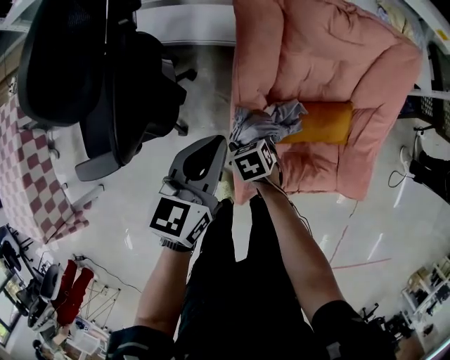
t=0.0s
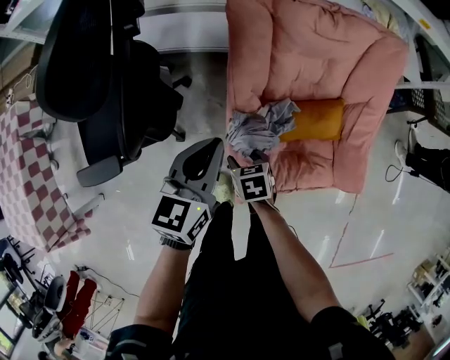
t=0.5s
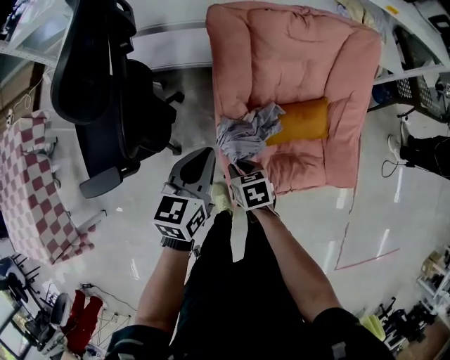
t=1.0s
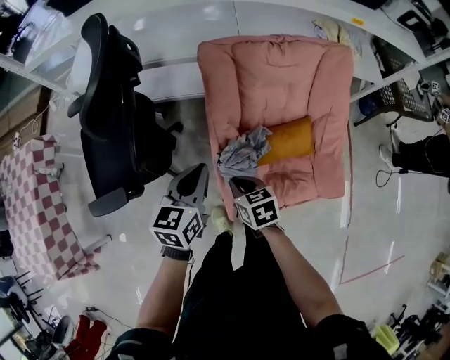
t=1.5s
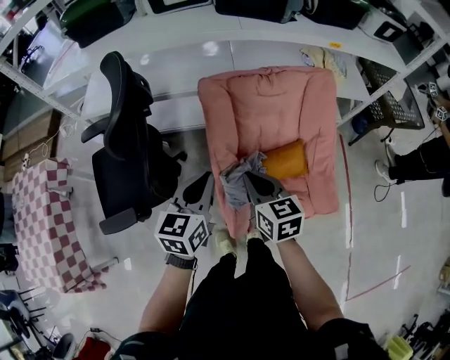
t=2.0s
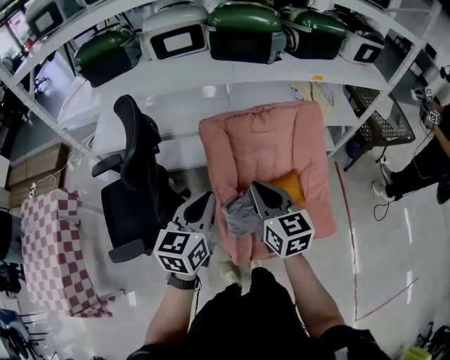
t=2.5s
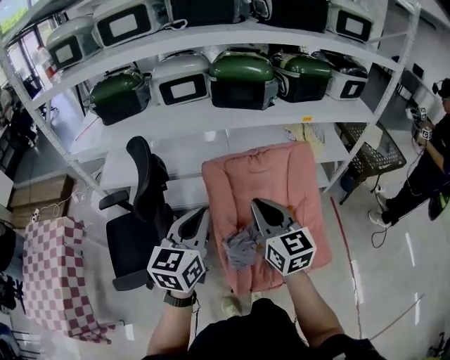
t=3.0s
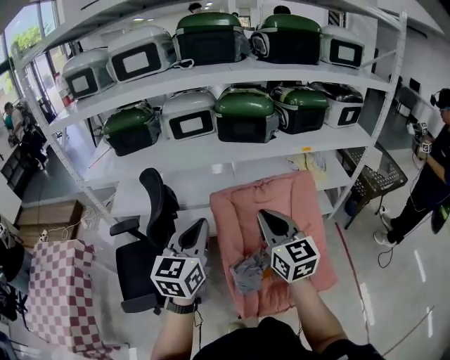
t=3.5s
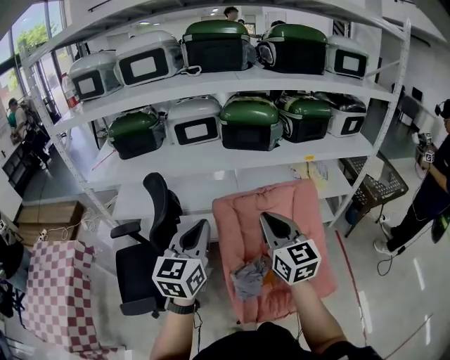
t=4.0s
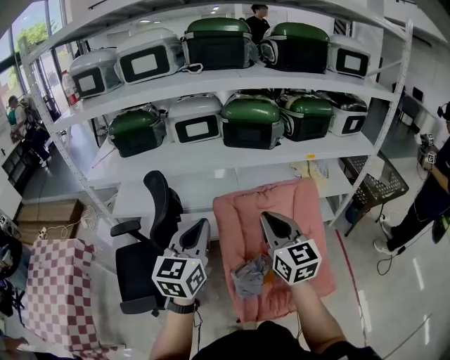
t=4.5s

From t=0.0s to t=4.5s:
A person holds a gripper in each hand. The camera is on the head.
From t=0.0s to t=2.0s: The left gripper is displaced upward by approximately 15 cm. Meanwhile the right gripper is displaced upward by about 35 cm, tips its fingers upward by roughly 40 degrees, and closes its fingers.
From t=2.0s to t=4.5s: Both grippers travel together upward, roughly 25 cm. The left gripper turns by approximately 20 degrees; the right gripper swivels some 30 degrees.

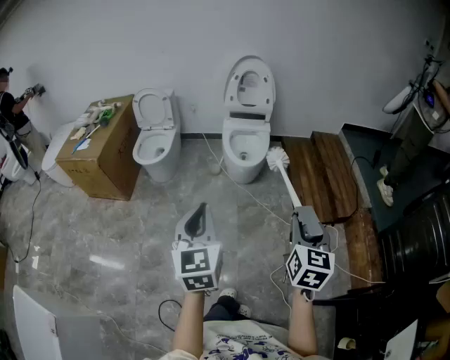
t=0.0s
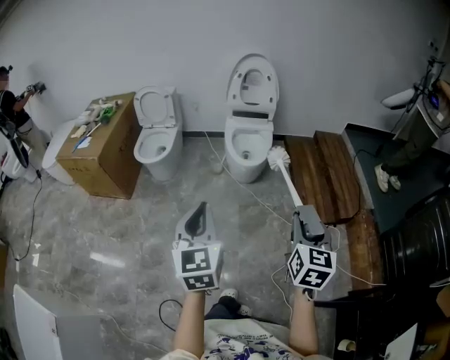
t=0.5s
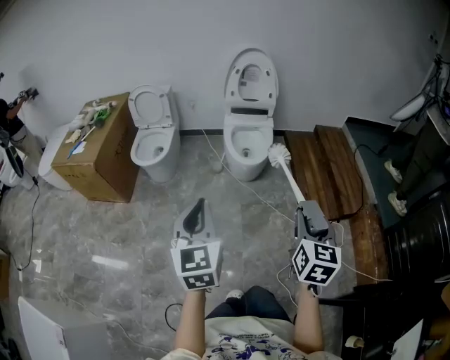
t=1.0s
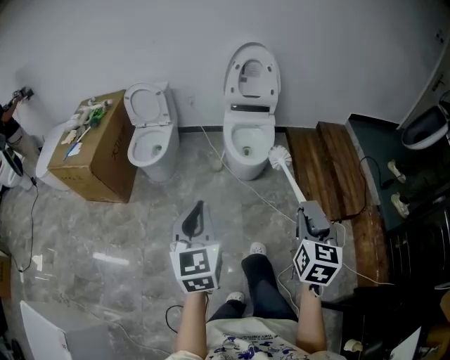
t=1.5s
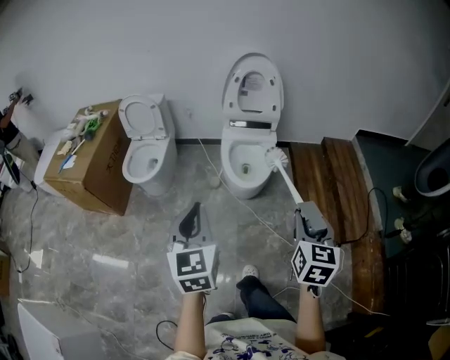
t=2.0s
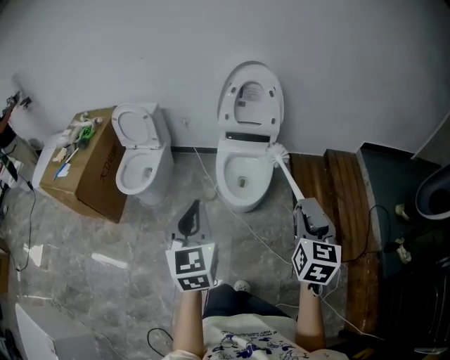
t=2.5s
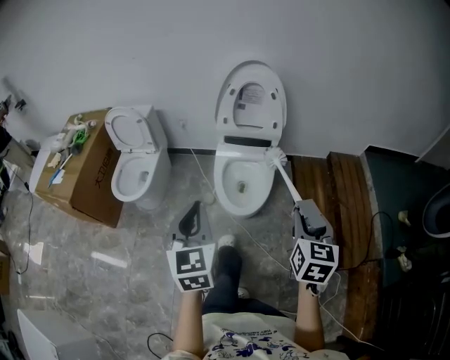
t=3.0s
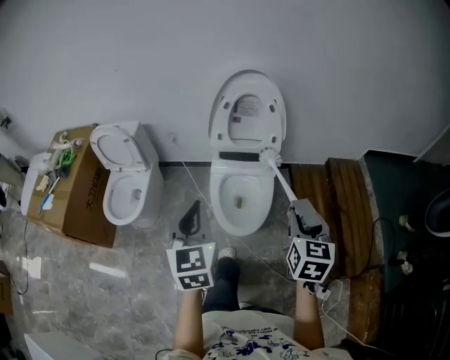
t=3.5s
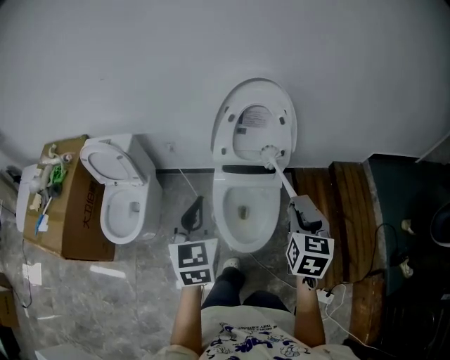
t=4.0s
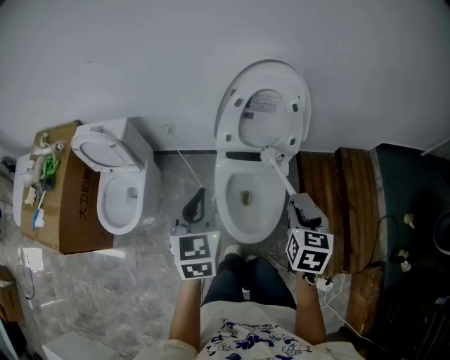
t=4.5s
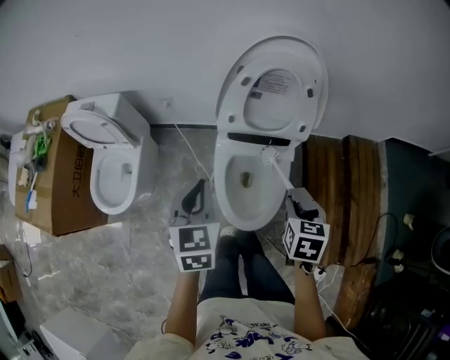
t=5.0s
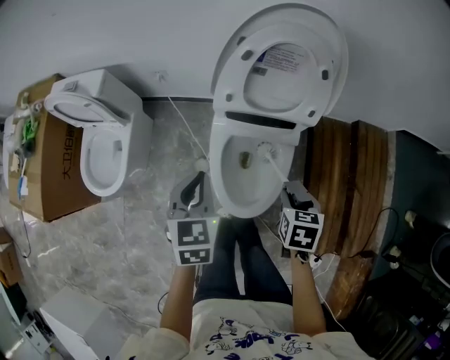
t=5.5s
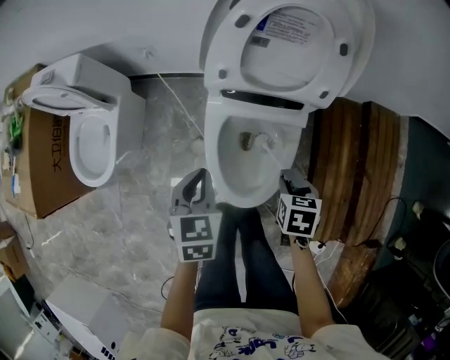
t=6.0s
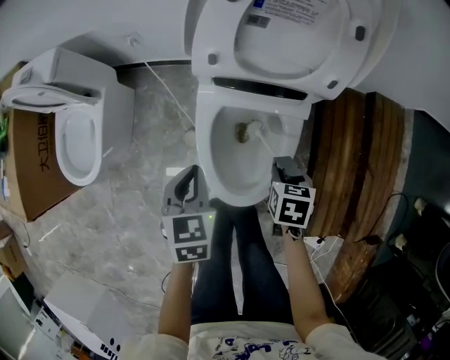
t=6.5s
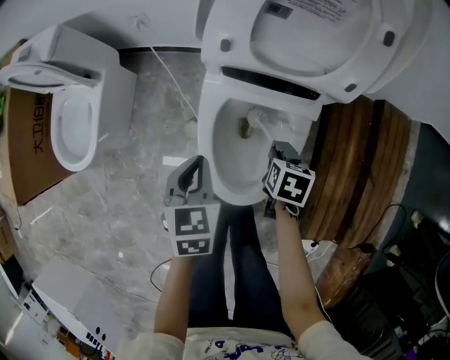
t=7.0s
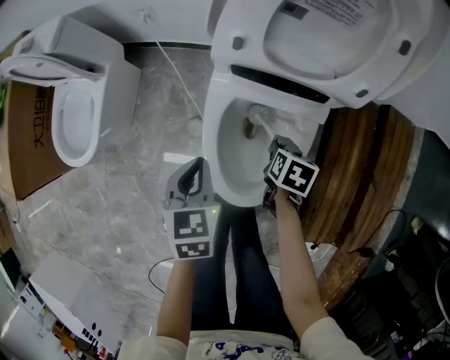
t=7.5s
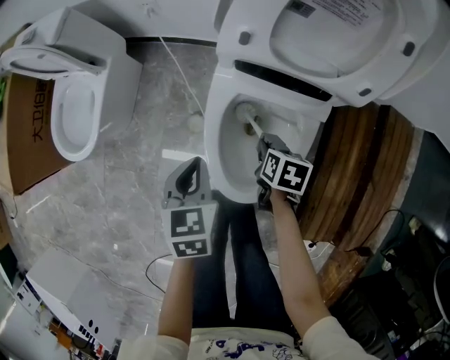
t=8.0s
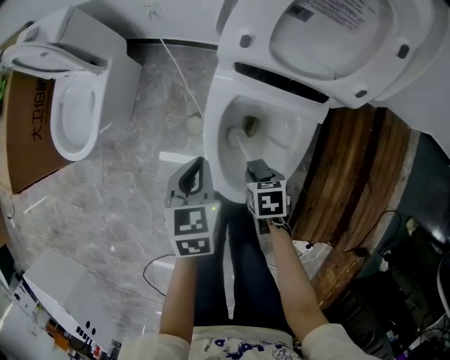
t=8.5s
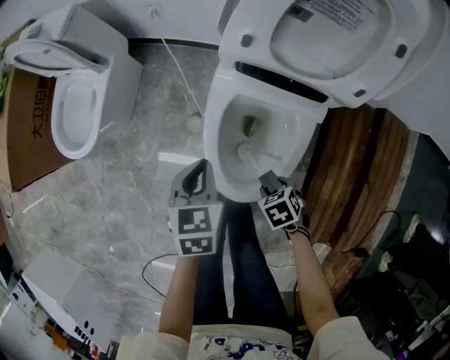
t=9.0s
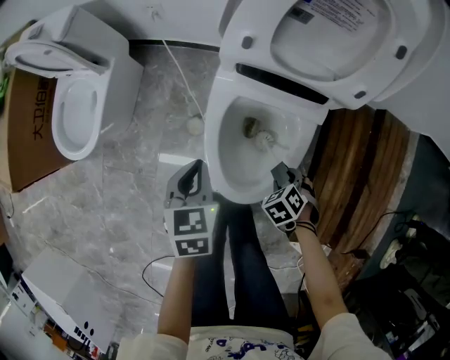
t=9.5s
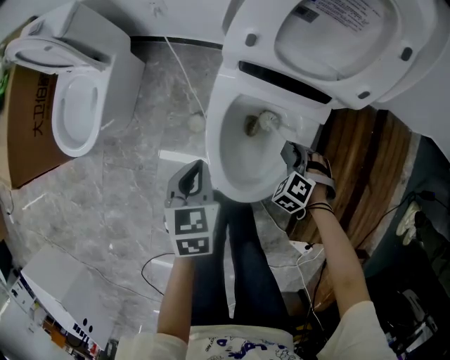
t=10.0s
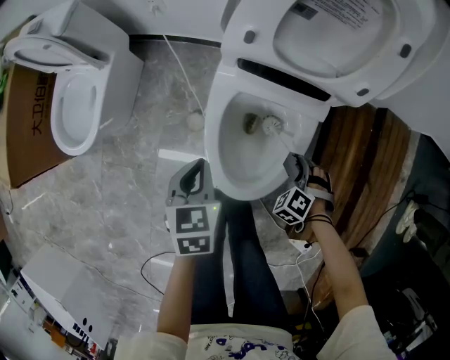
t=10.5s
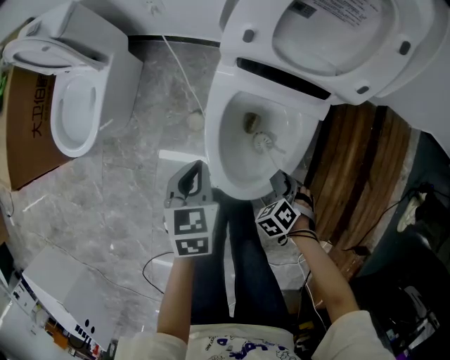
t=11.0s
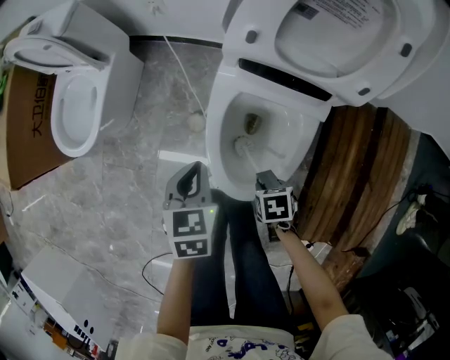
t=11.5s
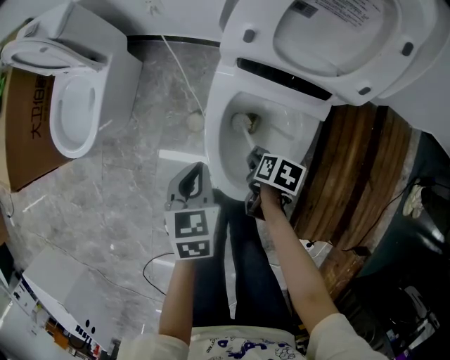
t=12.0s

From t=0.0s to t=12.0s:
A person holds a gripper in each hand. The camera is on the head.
From t=0.0s to t=2.0s: The grippers both shift forward by about 25 cm.
From t=2.0s to t=4.0s: The two grippers travel together, forward, some 50 cm.
From t=4.0s to t=6.0s: Both grippers travel together downward, approximately 30 cm. The right gripper tips its fingers downward by about 40 degrees. The left gripper turns by some 30 degrees.
From t=6.0s to t=8.0s: The right gripper travels downward, to the left and forward by some 15 cm. The left gripper shifts roughly 10 cm downward.
From t=8.0s to t=10.0s: The right gripper rolls counterclockwise, seen from behind, by some 90 degrees.
From t=10.0s to t=12.0s: The right gripper ends up approximately 10 cm from where it was, and rotates around the line of its fingers by approximately 100 degrees, clockwise from behind.

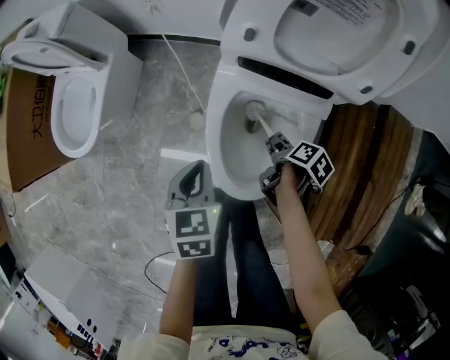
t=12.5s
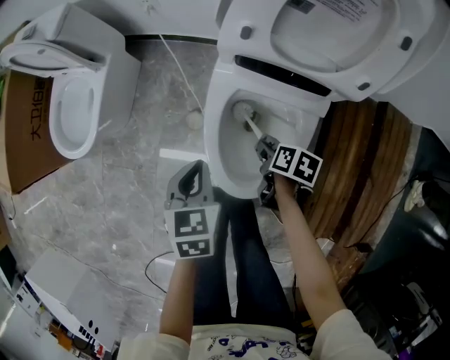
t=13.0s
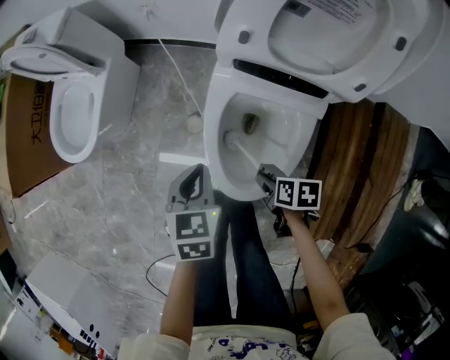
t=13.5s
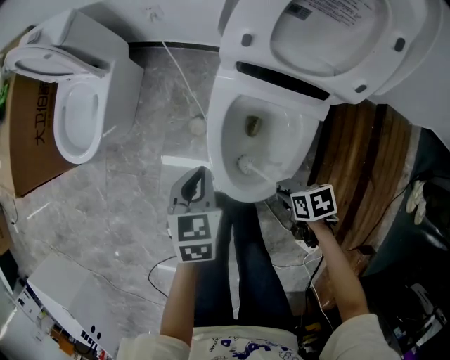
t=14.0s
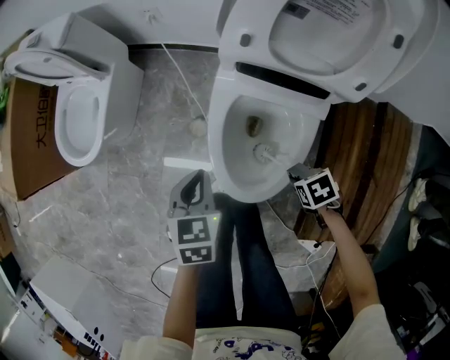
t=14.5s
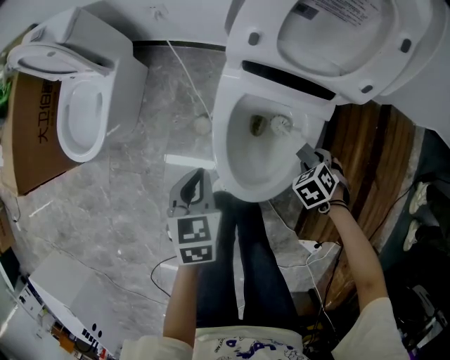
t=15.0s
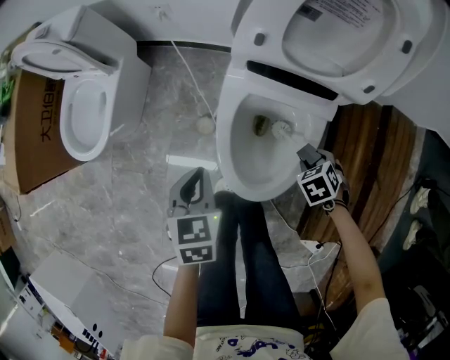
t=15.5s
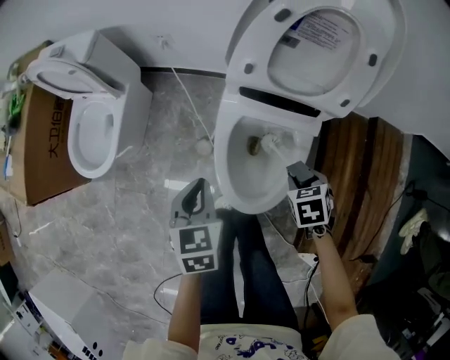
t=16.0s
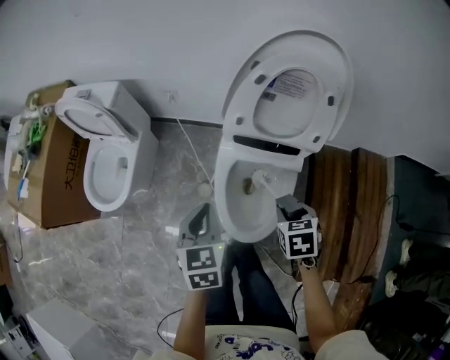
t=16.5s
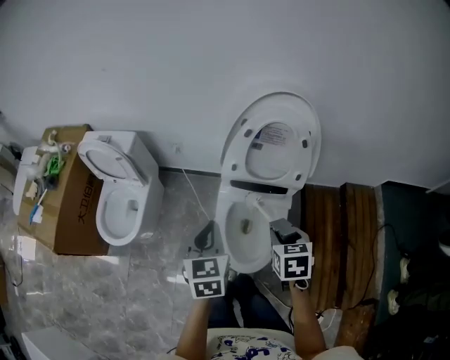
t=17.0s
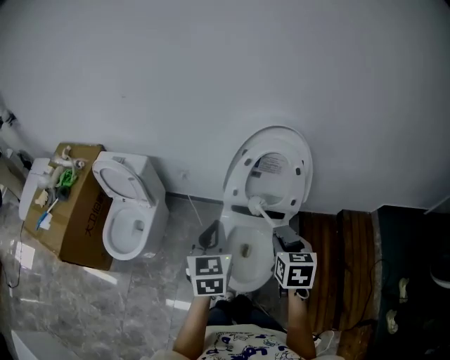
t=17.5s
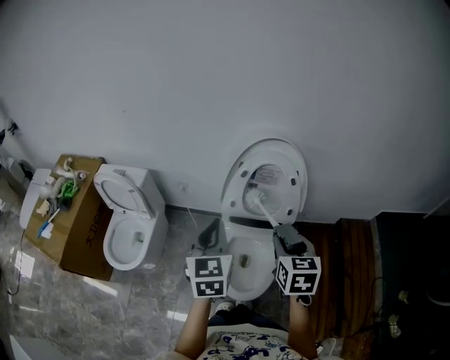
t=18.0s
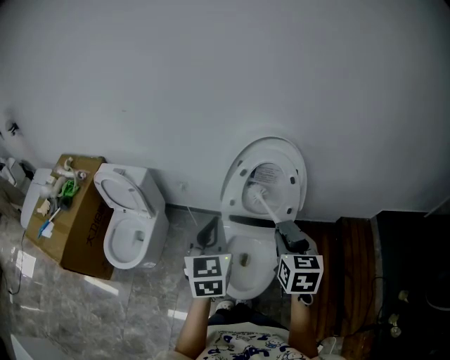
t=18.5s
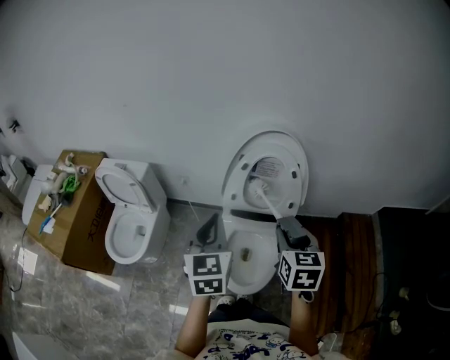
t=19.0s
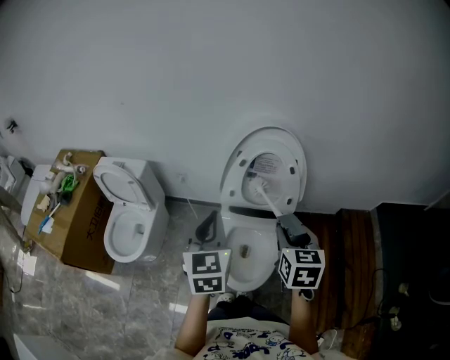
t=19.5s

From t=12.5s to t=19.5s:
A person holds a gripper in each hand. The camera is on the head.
From t=12.5s to t=14.5s: The right gripper shifts by approximately 10 cm, and twists about 70 degrees counterclockwise, seen from behind.
From t=14.5s to t=16.0s: The left gripper goes roughly 5 cm upward; the right gripper travels upward by roughly 10 cm, and rotates some 20 degrees.
From t=16.0s to t=17.5s: Both grippers move upward, approximately 30 cm. The right gripper tips its fingers upward by about 30 degrees. Meanwhile the left gripper swivels some 30 degrees.
From t=17.5s to t=19.5s: The two grippers go some 5 cm upward.

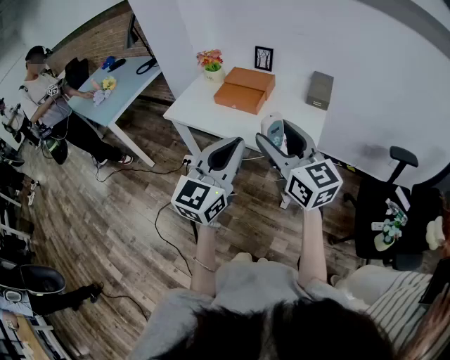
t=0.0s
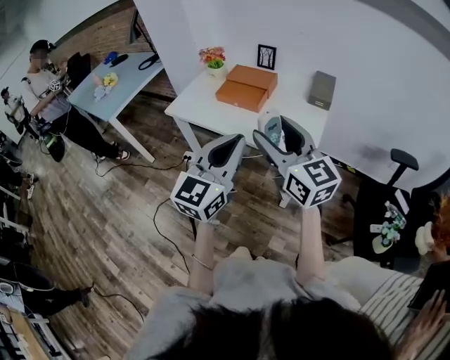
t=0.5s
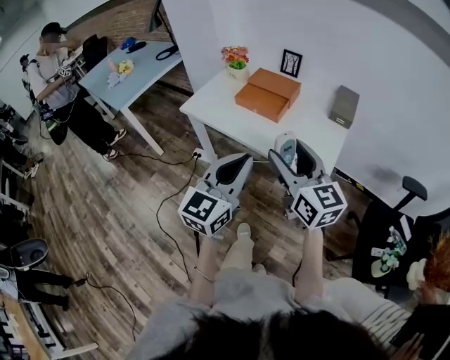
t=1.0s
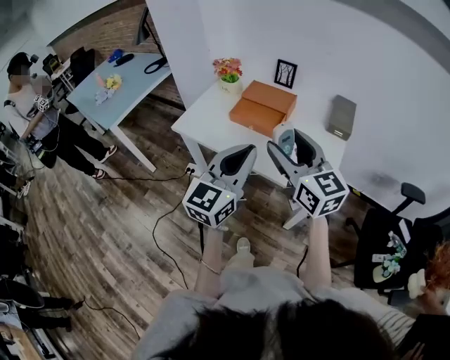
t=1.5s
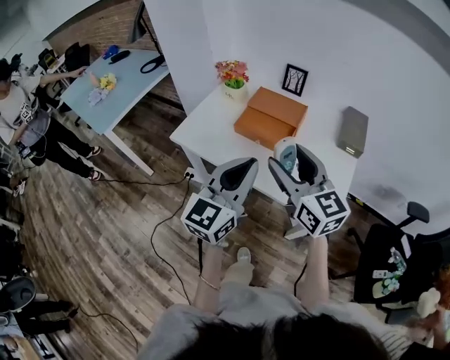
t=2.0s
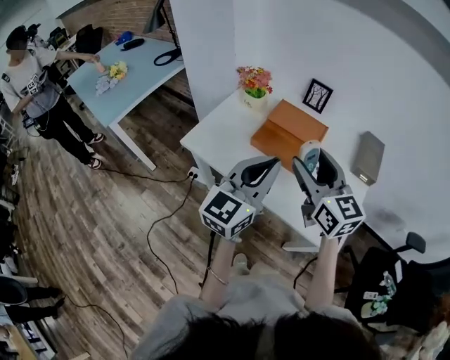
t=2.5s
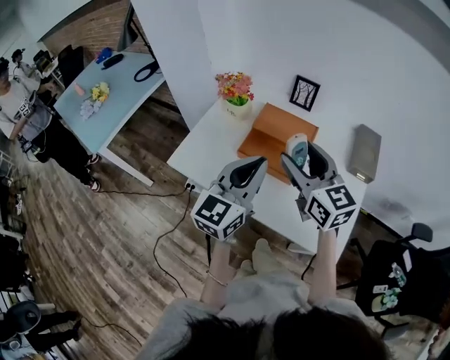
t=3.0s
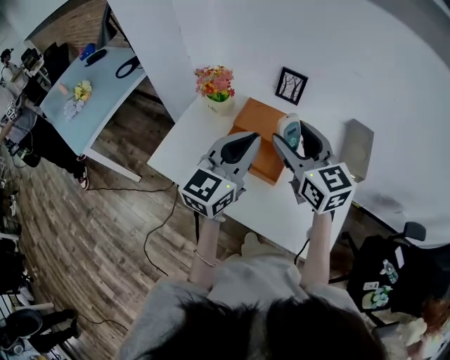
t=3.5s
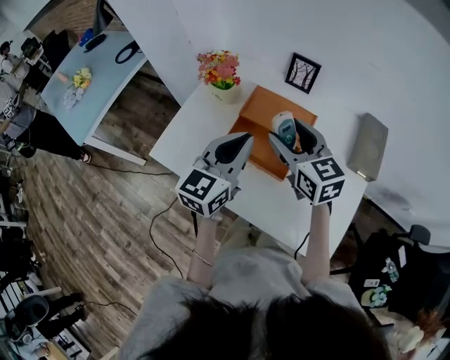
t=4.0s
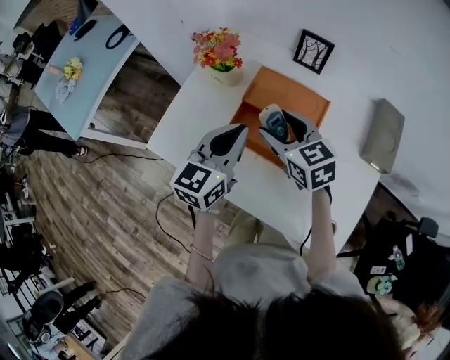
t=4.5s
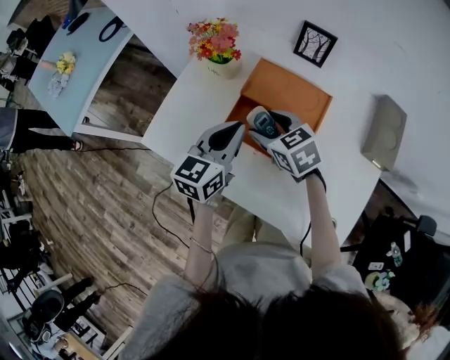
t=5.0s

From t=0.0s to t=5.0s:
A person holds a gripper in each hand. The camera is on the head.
From t=0.0s to t=2.5s: Both grippers travel together forward, approximately 30 cm.
From t=2.5s to t=5.0s: The right gripper heads downward and forward, covering about 30 cm, and angles its fingers downward, by some 40 degrees, while the left gripper heads forward and downward, covering approximately 30 cm, and turns by about 20 degrees.
